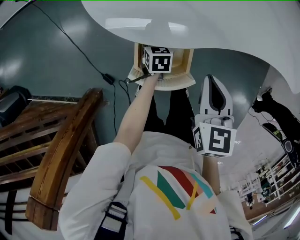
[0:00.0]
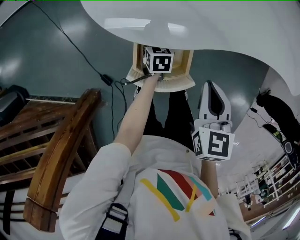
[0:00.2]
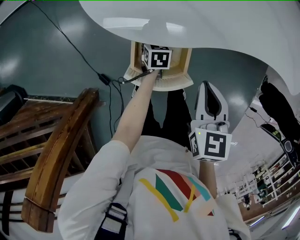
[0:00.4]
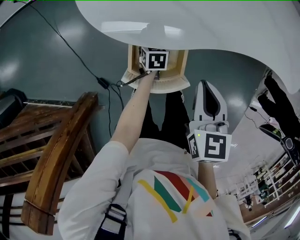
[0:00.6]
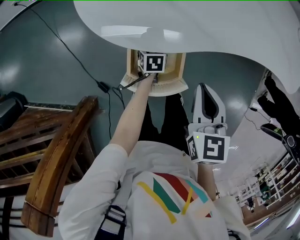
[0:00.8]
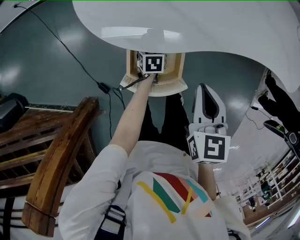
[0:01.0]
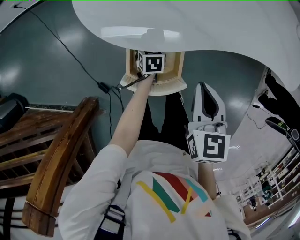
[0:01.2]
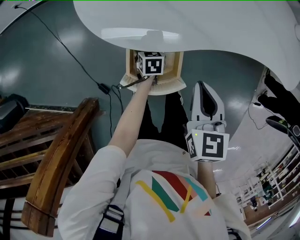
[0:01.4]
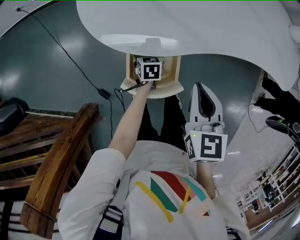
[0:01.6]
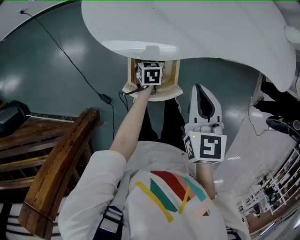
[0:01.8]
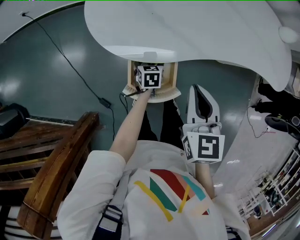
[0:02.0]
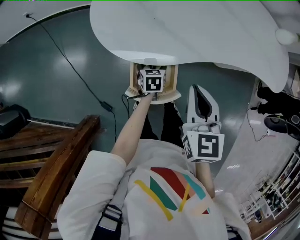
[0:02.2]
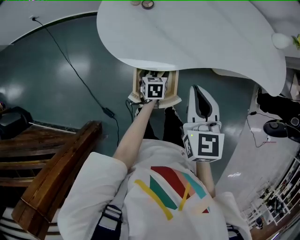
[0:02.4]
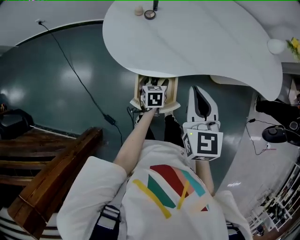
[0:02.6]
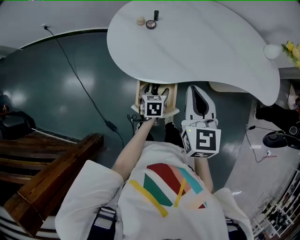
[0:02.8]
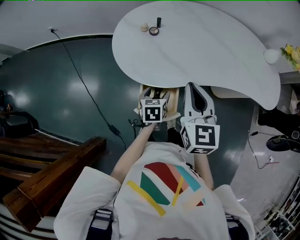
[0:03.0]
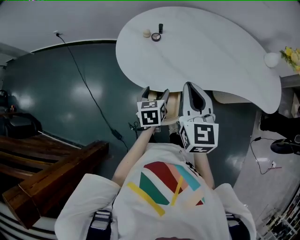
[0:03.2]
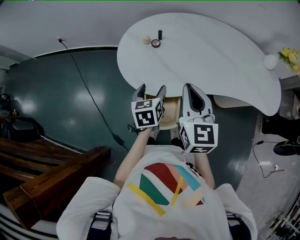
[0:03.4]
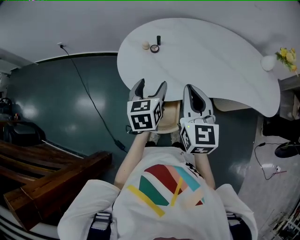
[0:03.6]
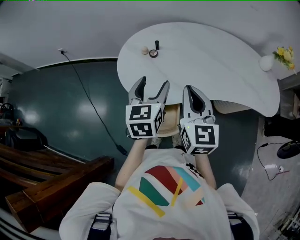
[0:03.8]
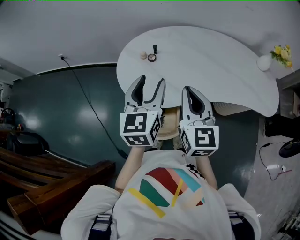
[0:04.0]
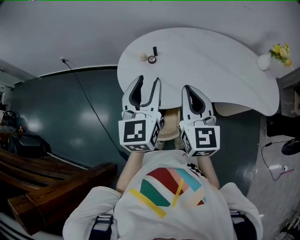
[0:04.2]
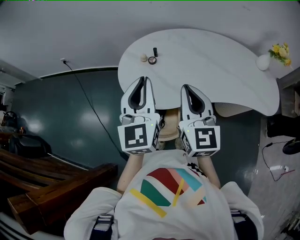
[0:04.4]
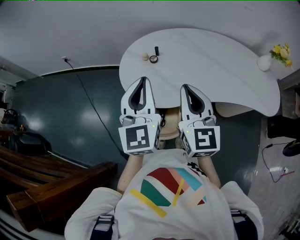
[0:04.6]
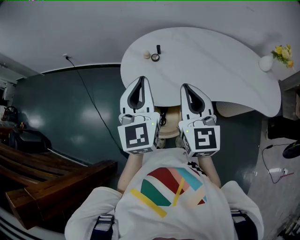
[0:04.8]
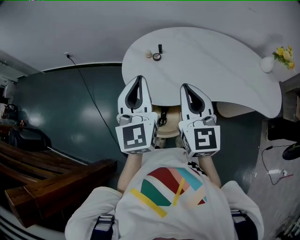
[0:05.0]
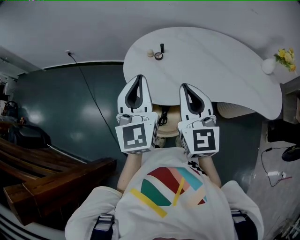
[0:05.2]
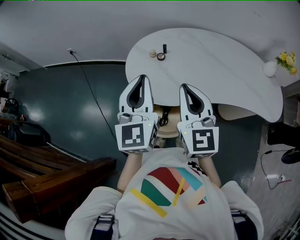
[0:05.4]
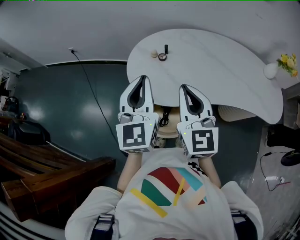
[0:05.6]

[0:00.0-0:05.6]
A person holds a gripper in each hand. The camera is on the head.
0:00.0 to 0:01.4: The grippers stay close to where they were, moving slightly.
0:01.4 to 0:02.8: Both grippers move upward, about 15 cm.
0:02.8 to 0:04.2: The right gripper shifts approximately 10 cm upward; the left gripper heads upward, covering approximately 35 cm, tips its fingers upward by some 40 degrees, and closes up.
0:04.2 to 0:05.6: The left gripper ends up about 5 cm from where it was, and closes its fingers. The right gripper changes place by about 5 cm.

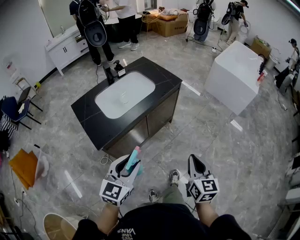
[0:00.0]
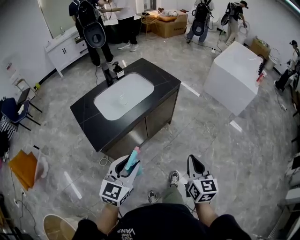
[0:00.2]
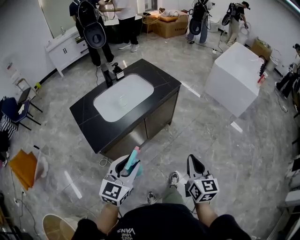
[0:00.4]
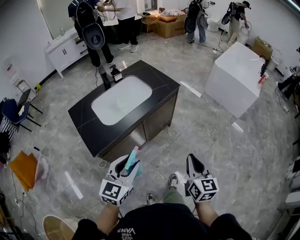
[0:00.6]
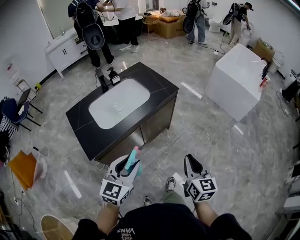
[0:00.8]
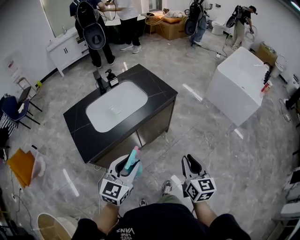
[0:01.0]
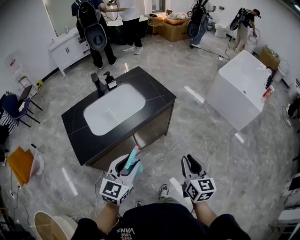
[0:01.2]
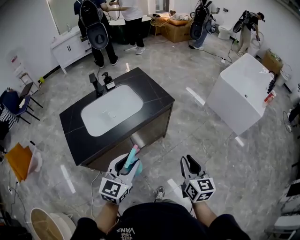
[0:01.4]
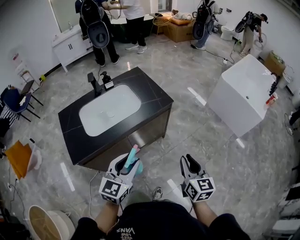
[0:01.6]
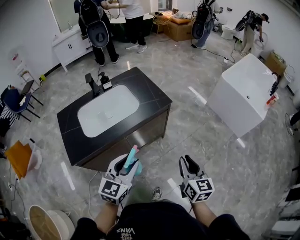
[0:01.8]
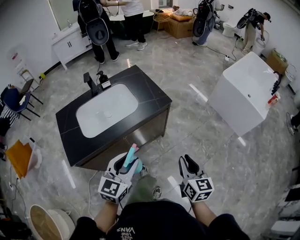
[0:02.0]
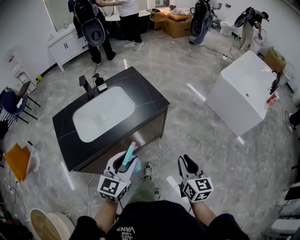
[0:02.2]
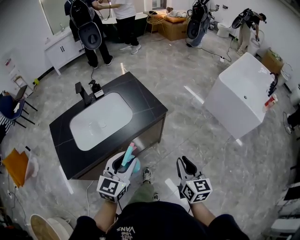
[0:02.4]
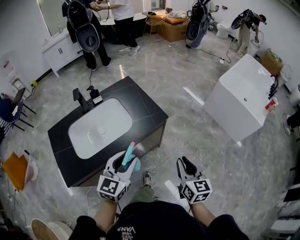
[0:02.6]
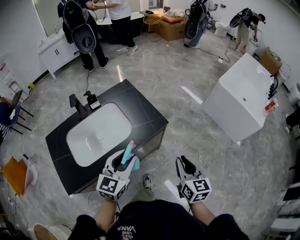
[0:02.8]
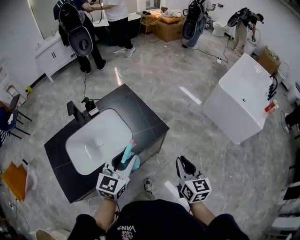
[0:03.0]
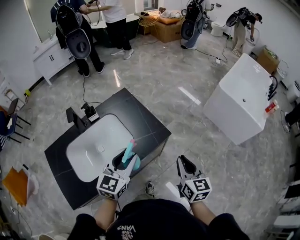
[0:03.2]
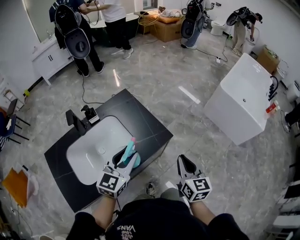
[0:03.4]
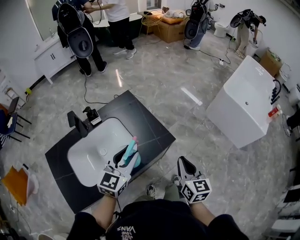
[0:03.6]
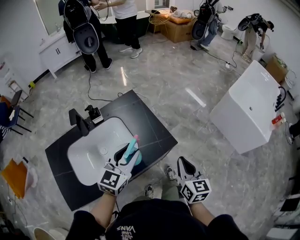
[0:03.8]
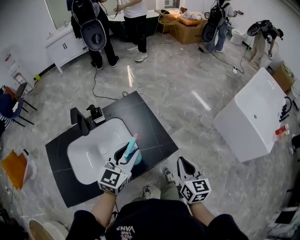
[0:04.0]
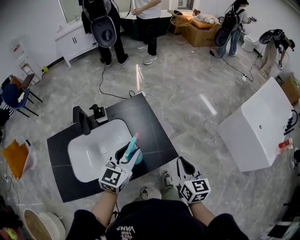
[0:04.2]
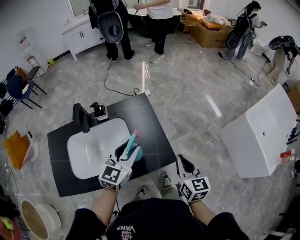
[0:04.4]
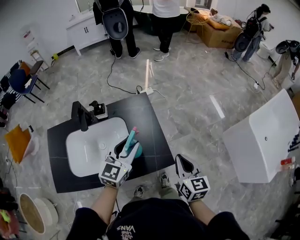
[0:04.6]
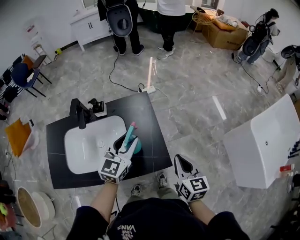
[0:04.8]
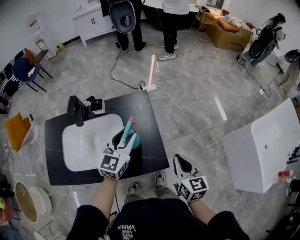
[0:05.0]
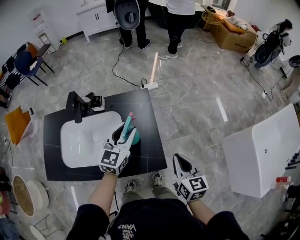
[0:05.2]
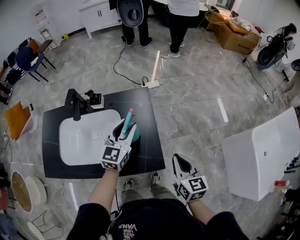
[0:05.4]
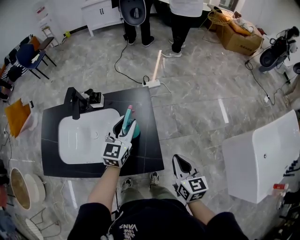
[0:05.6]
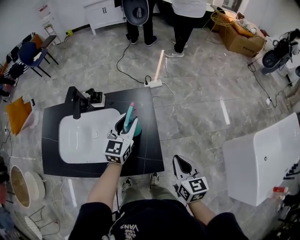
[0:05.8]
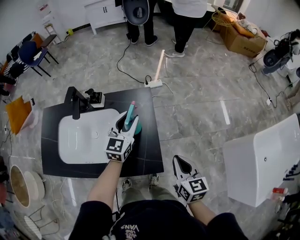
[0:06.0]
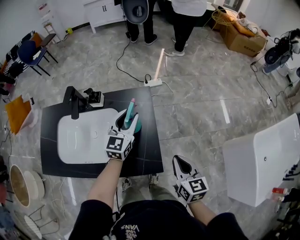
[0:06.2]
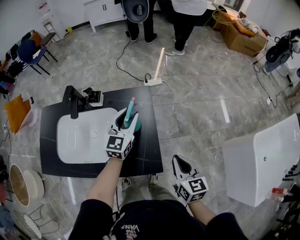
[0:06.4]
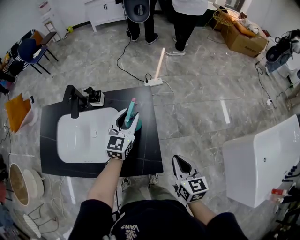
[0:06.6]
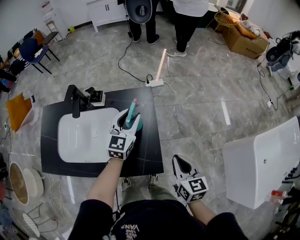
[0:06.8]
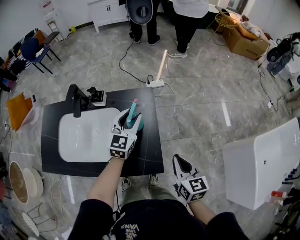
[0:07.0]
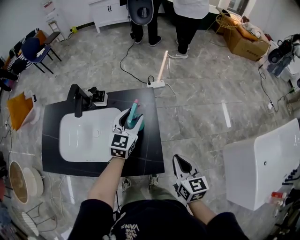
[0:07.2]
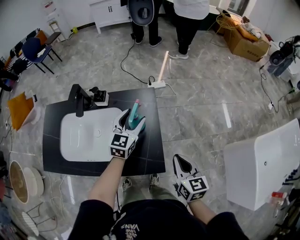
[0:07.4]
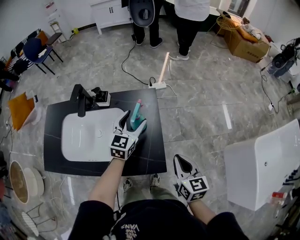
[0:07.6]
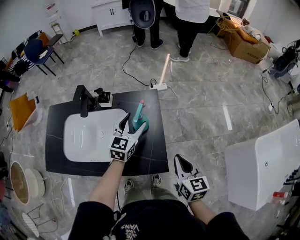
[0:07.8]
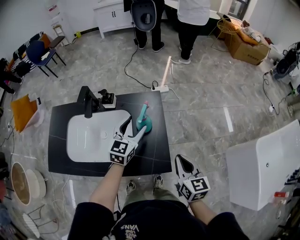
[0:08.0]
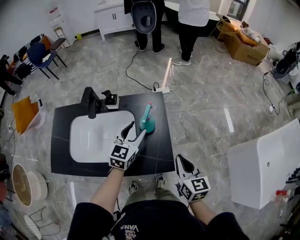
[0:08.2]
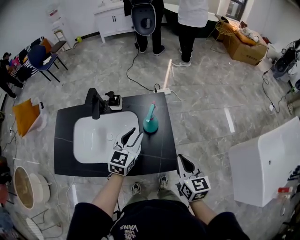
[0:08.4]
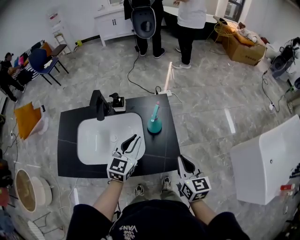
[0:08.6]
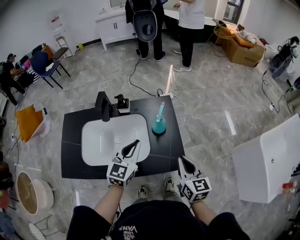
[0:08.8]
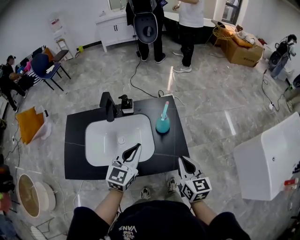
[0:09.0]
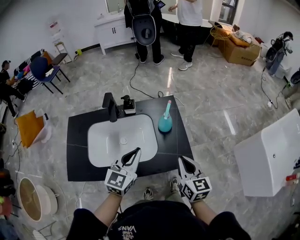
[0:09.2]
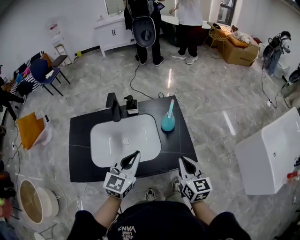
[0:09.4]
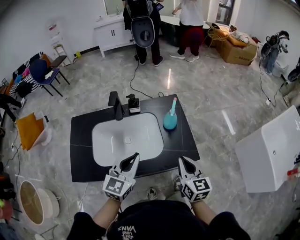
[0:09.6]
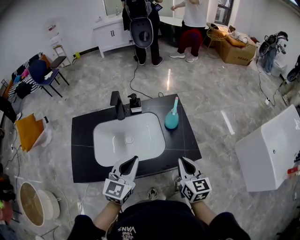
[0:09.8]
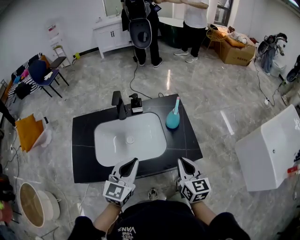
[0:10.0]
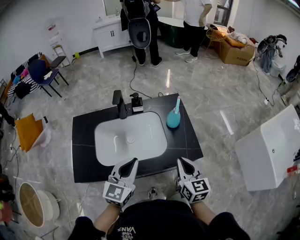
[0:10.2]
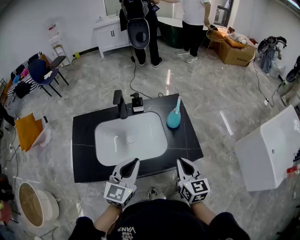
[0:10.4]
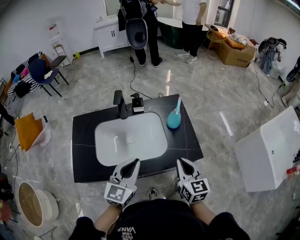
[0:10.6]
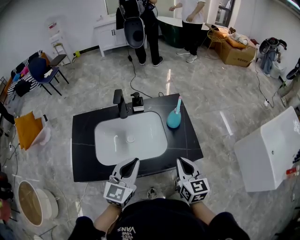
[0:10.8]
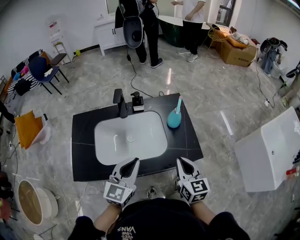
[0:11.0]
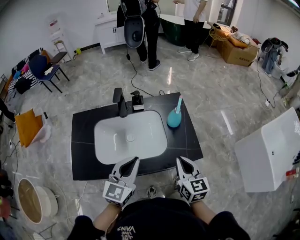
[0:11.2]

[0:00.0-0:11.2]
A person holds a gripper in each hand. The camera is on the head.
0:00.0 to 0:01.6: Both grippers move forward and to the right, about 25 cm.
0:01.6 to 0:03.2: The grippers both shift forward by about 25 cm.
0:03.2 to 0:04.8: The left gripper ends up roughly 20 cm from where it was, and changes its angle by some 20 degrees. Meanwhile the right gripper changes place by about 20 cm, and changes its angle by some 30 degrees.
0:04.8 to 0:06.4: The left gripper heads forward and downward, covering approximately 15 cm, while the right gripper ends up some 5 cm from where it was.
0:06.4 to 0:08.0: The left gripper shifts by approximately 5 cm, and opens up.
0:08.0 to 0:09.6: The left gripper is displaced backward and to the left by some 25 cm, and closes. The right gripper travels to the left and backward by some 20 cm.
0:09.6 to 0:11.2: The grippers move only a little.

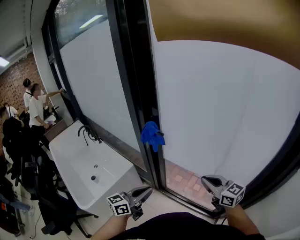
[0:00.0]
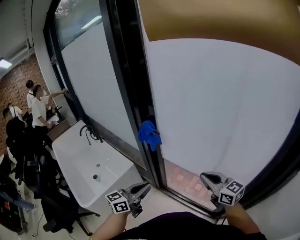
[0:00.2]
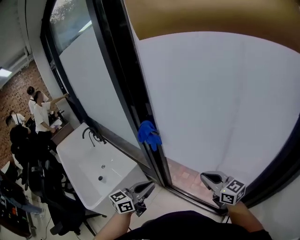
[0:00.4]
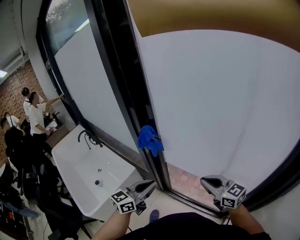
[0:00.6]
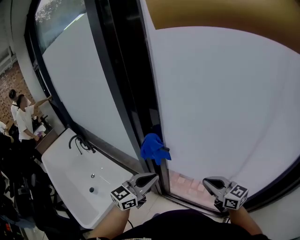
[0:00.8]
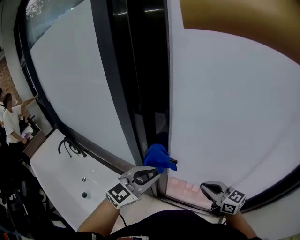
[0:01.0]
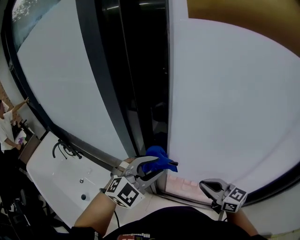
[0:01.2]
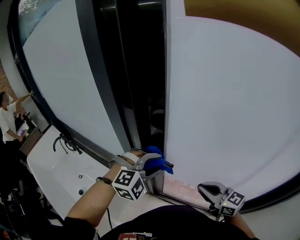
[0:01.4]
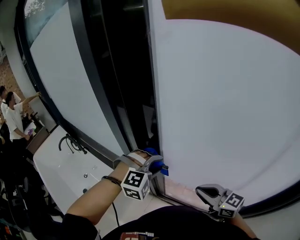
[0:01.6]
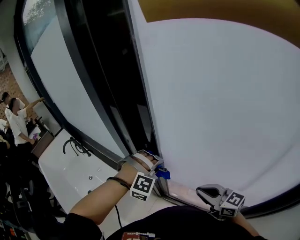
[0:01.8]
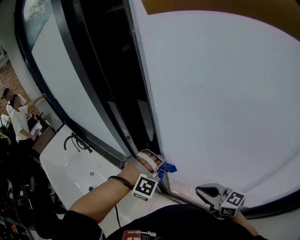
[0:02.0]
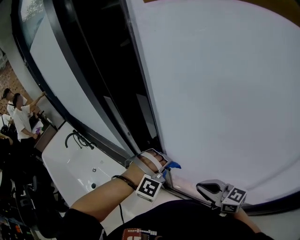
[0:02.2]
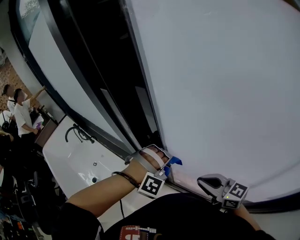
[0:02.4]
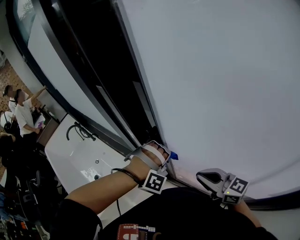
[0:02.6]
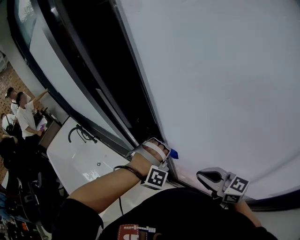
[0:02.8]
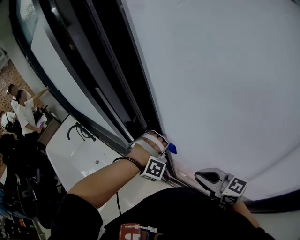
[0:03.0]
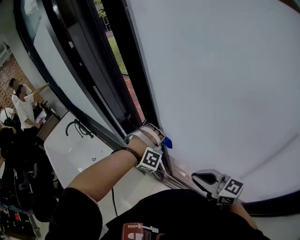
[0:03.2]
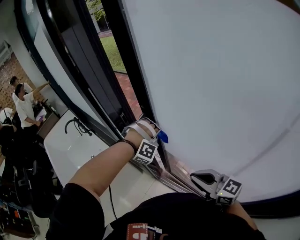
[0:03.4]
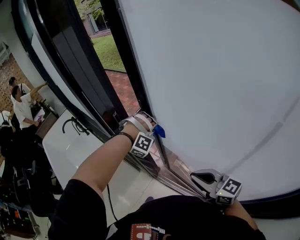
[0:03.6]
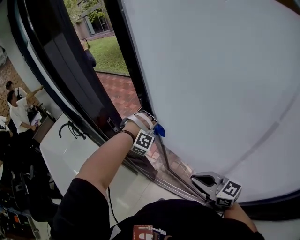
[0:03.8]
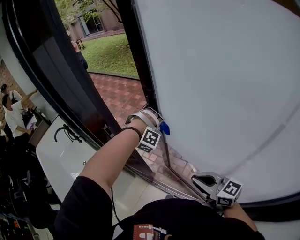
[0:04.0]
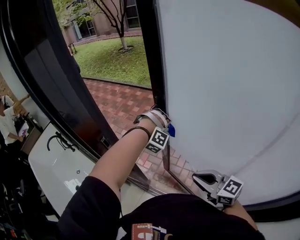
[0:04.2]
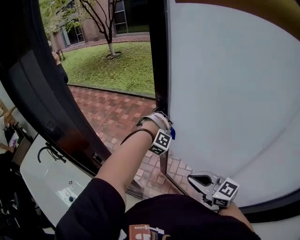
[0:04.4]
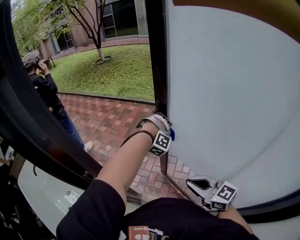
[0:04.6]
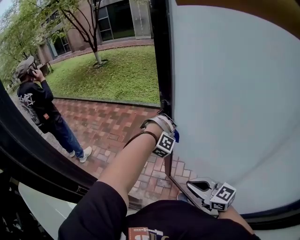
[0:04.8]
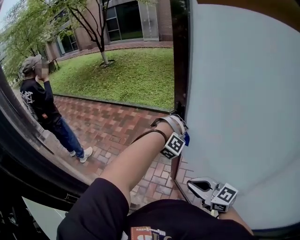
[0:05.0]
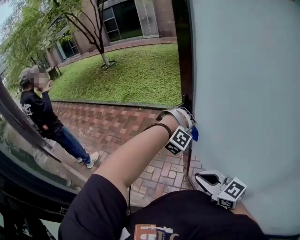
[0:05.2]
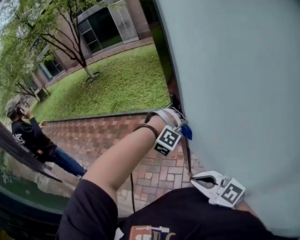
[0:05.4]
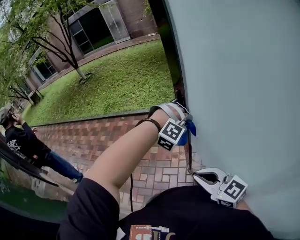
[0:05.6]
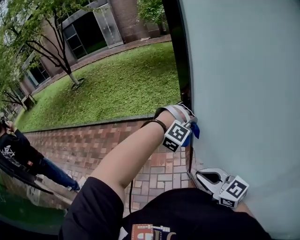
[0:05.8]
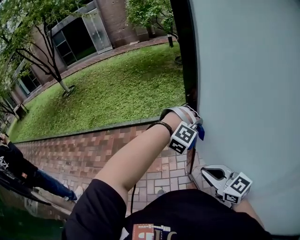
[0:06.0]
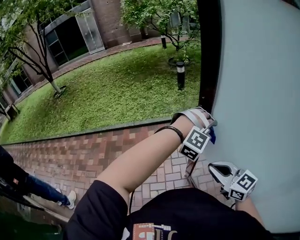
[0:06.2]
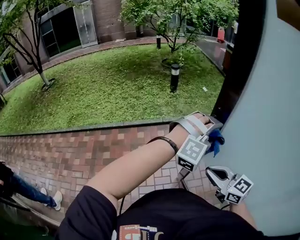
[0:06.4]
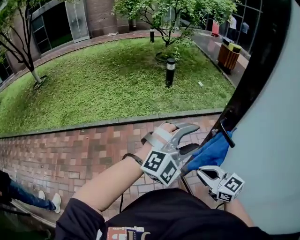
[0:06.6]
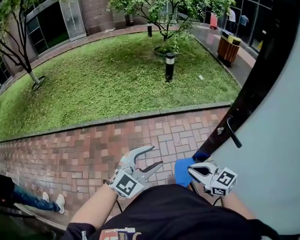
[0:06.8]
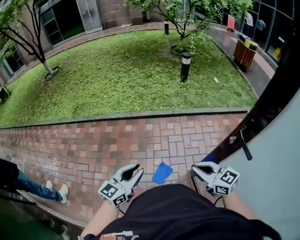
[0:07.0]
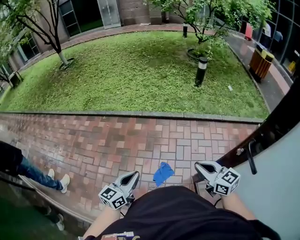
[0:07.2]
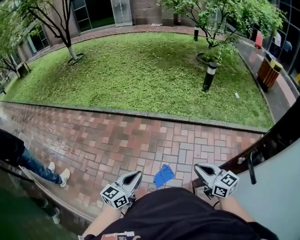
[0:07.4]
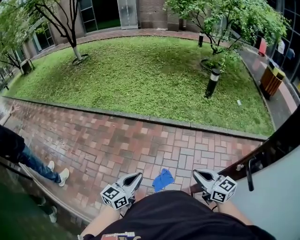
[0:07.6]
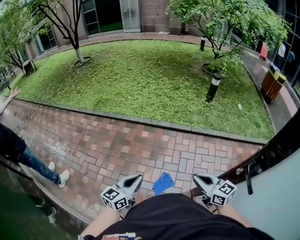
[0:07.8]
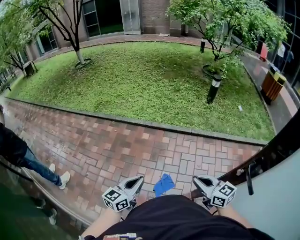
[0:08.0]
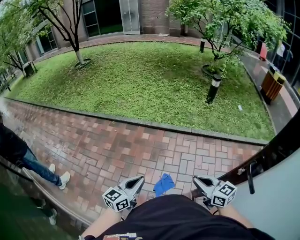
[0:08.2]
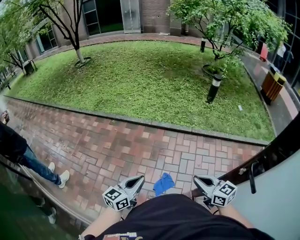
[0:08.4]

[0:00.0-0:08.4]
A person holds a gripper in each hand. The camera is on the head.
0:00.0 to 0:01.4: The right gripper goes roughly 15 cm forward. The left gripper goes roughly 30 cm forward, rotates around the line of its fingers by about 80 degrees, clockwise from behind, and opens up.
0:01.4 to 0:02.8: The left gripper moves downward, approximately 10 cm, turns by roughly 50 degrees, and closes up.
0:02.8 to 0:04.2: The right gripper heads to the right, covering some 10 cm, while the left gripper goes about 25 cm to the right and forward.
0:04.2 to 0:05.6: The left gripper ends up roughly 40 cm from where it was, and changes its angle by some 30 degrees; the right gripper changes place by approximately 35 cm, and swivels about 20 degrees.
0:05.6 to 0:07.0: The right gripper moves roughly 30 cm, while the left gripper reaches approximately 10 cm upward, then returns, rotates around the line of its fingers by some 110 degrees, counterclockwise from behind, and opens its fingers.
0:07.0 to 0:08.4: The left gripper shifts by roughly 5 cm, and closes its fingers, while the right gripper is displaced forward by about 5 cm.
